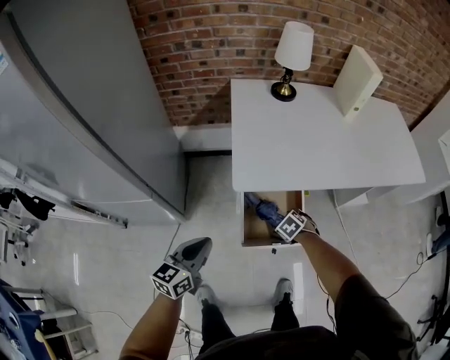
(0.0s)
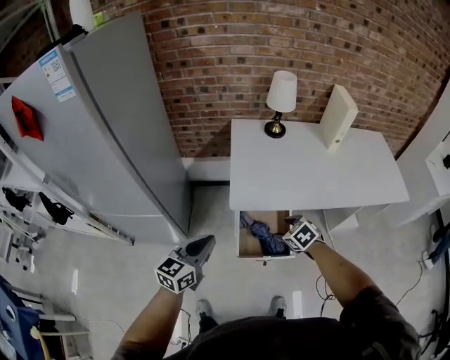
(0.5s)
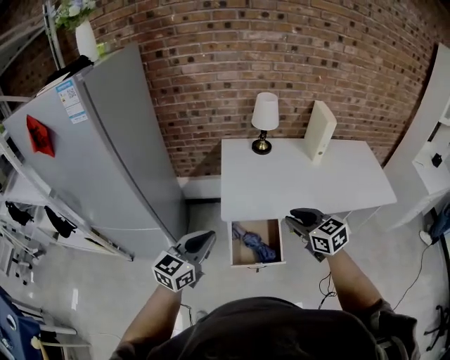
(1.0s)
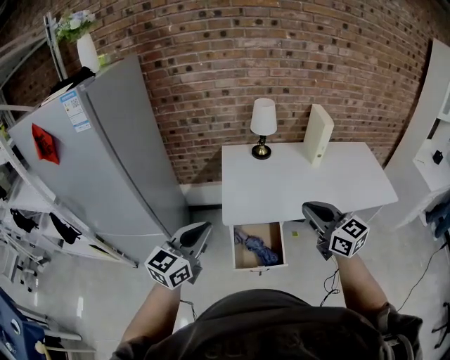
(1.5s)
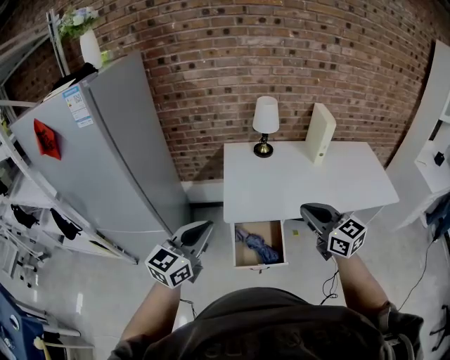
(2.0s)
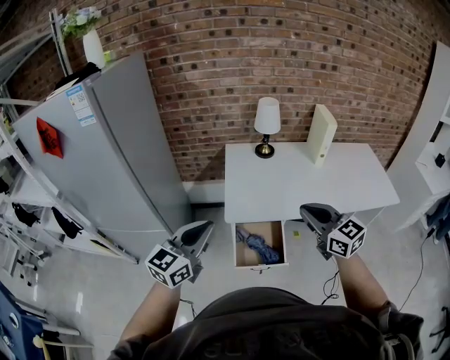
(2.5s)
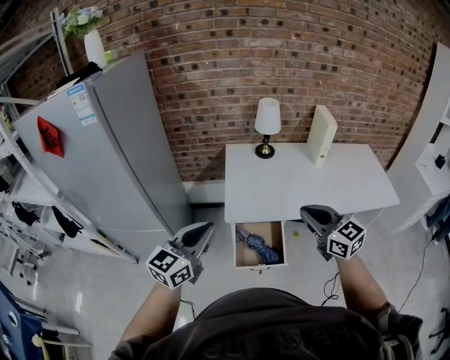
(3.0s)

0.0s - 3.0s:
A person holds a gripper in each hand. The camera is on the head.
0.0s - 1.5s: The left gripper is displaced upward by some 30 cm, and changes its angle by some 20 degrees, while the right gripper heads upward, covering approximately 50 cm, tips its fingers upward by approximately 70 degrees, and closes up.
1.5s - 3.0s: The grippers make only small movements.

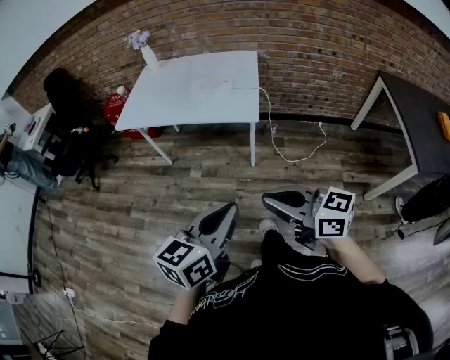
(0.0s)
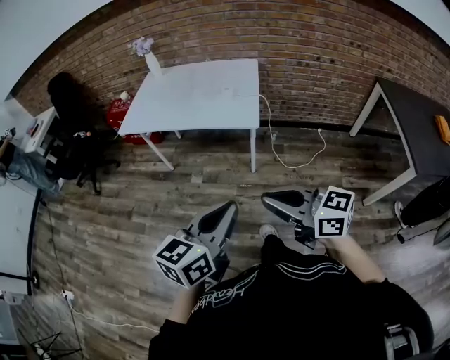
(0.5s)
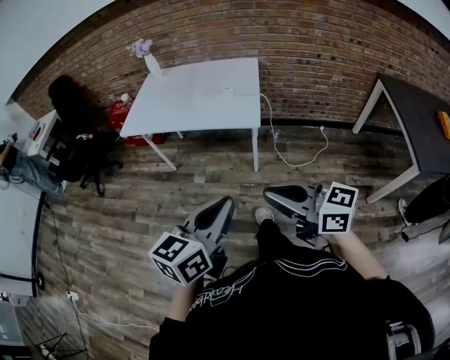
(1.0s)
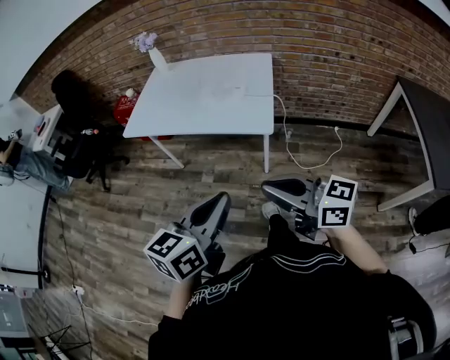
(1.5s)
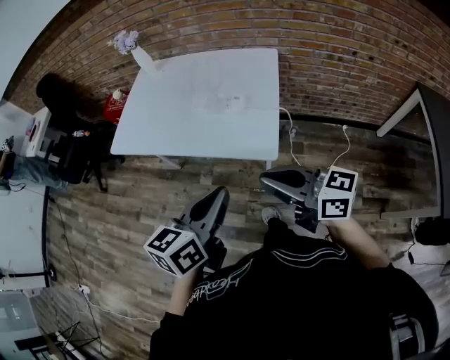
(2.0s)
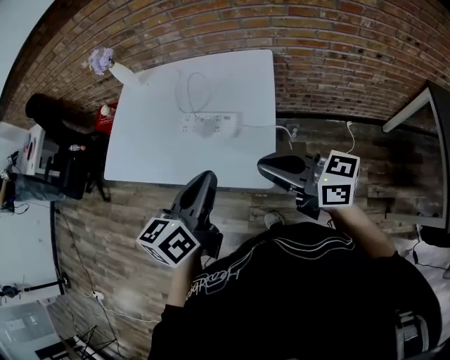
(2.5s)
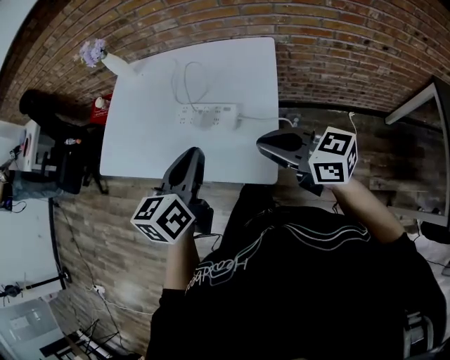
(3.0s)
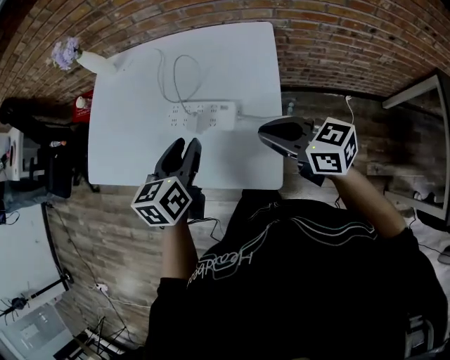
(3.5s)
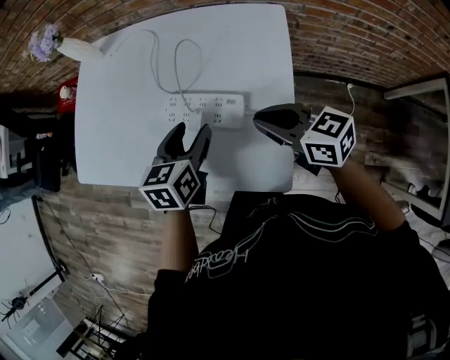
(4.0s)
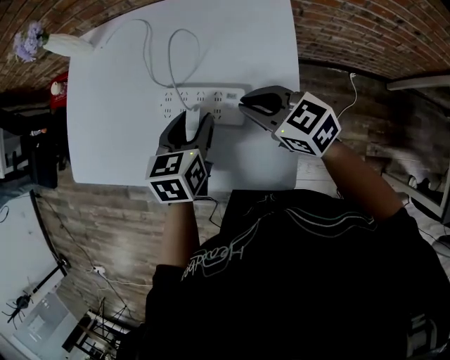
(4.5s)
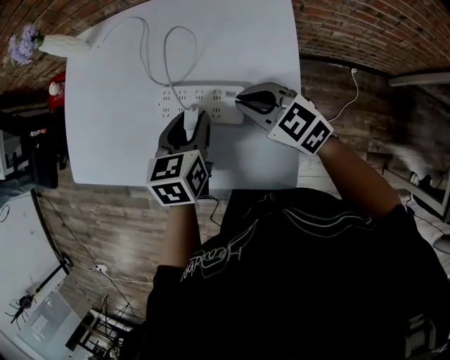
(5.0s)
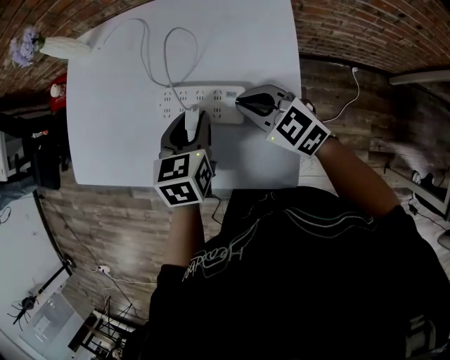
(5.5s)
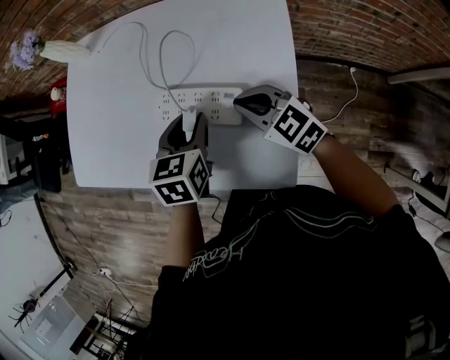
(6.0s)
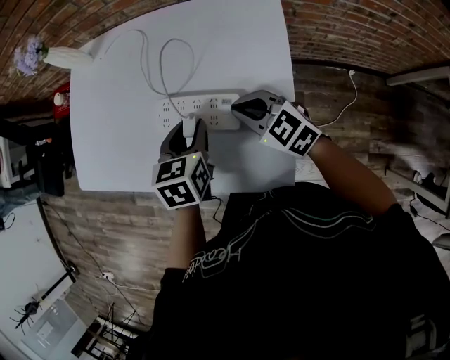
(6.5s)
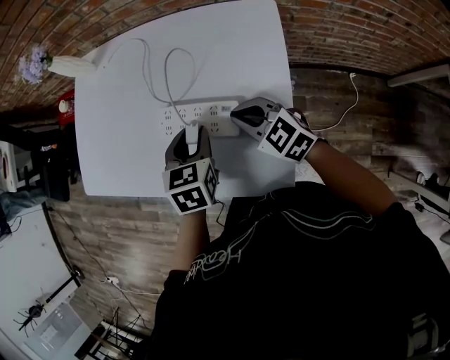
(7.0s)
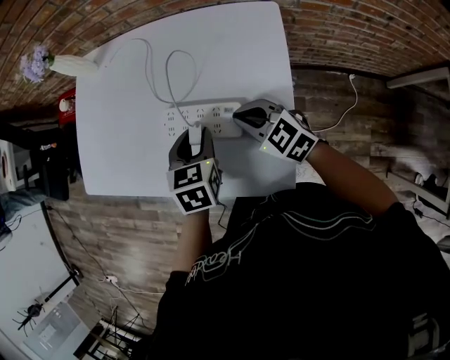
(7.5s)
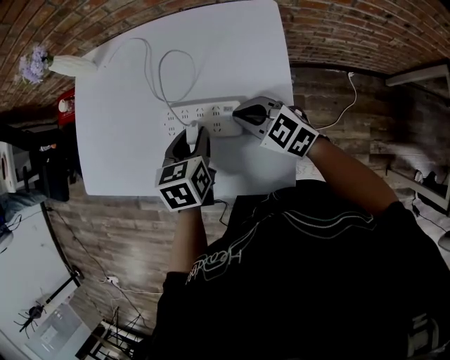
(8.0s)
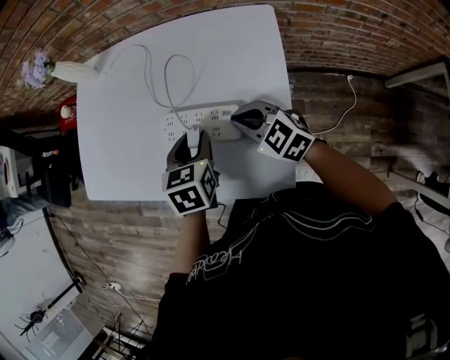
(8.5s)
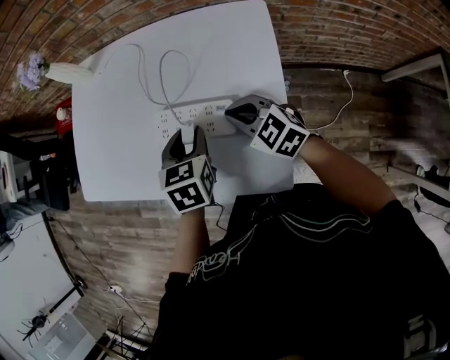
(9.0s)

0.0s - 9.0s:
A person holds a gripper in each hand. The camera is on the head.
0.0s - 2.0s: The grippers both shift forward by some 30 cm.
2.0s - 4.5s: The grippers both shift forward and downward by approximately 40 cm. The left gripper rotates roughly 30 degrees, and opens up. The right gripper turns by roughly 30 degrees.
4.5s - 9.0s: There are only small adjustments of the grippers.

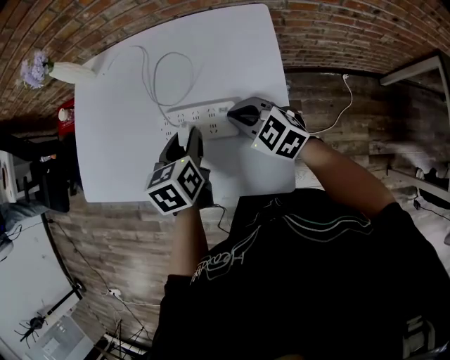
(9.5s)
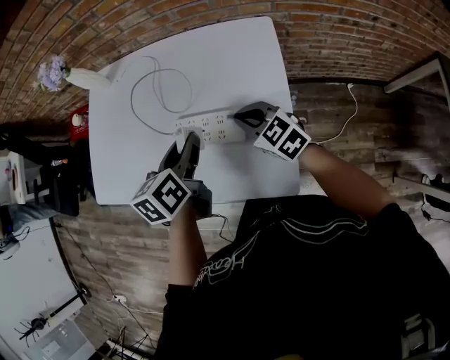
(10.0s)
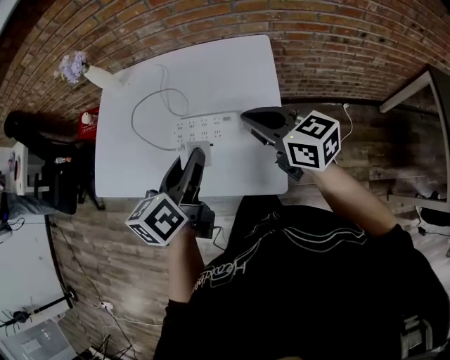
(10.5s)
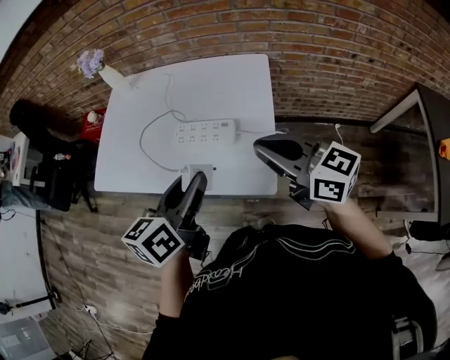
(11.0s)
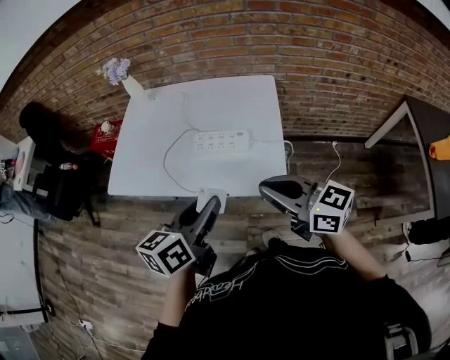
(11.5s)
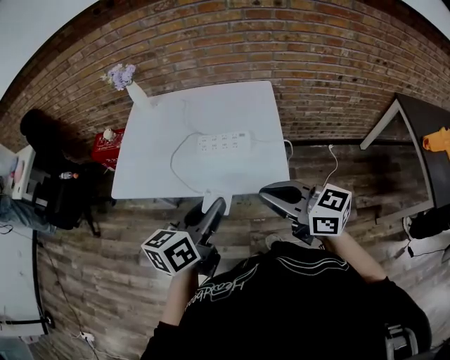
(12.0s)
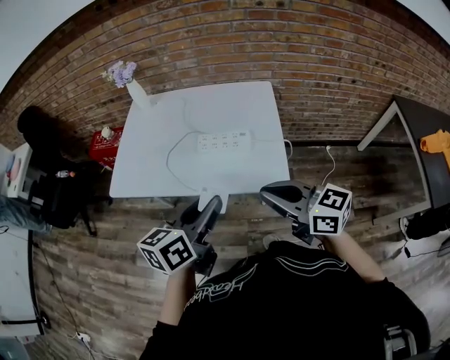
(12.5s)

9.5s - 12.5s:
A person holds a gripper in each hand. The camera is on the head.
9.5s - 11.0s: Both grippers move upward and backward, some 25 cm. The left gripper changes its angle by roughly 30 degrees. The right gripper swivels roughly 40 degrees.
11.0s - 12.5s: Both grippers move backward and to the left, approximately 15 cm.

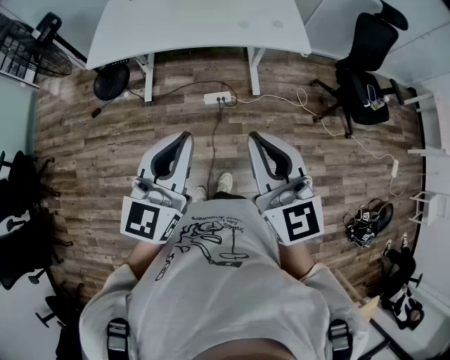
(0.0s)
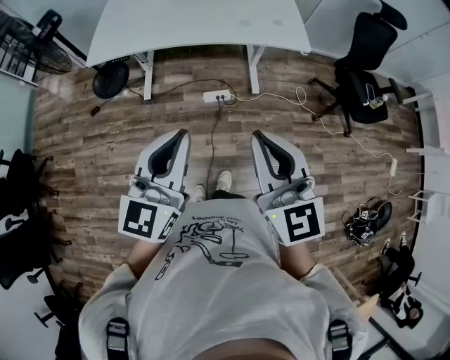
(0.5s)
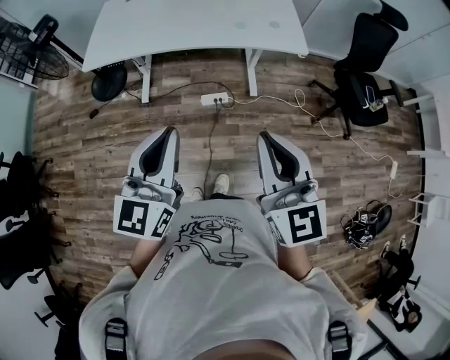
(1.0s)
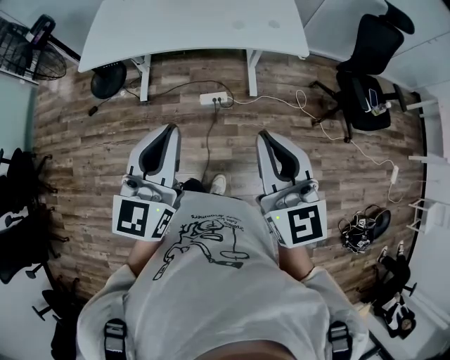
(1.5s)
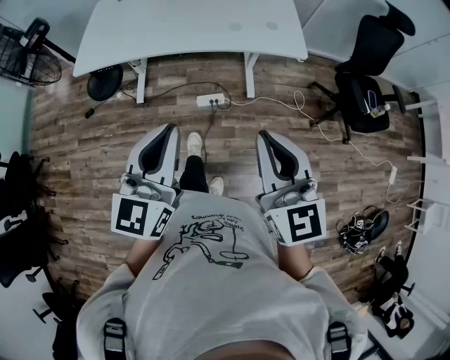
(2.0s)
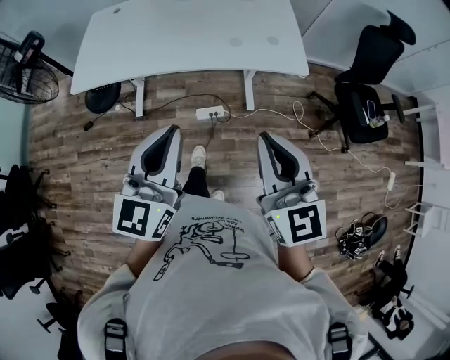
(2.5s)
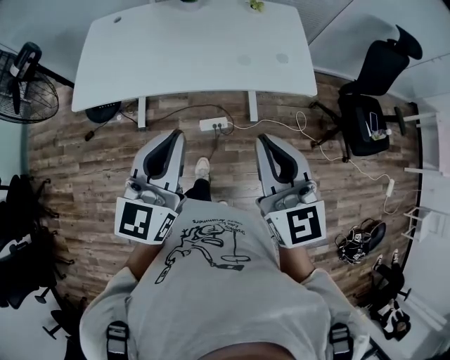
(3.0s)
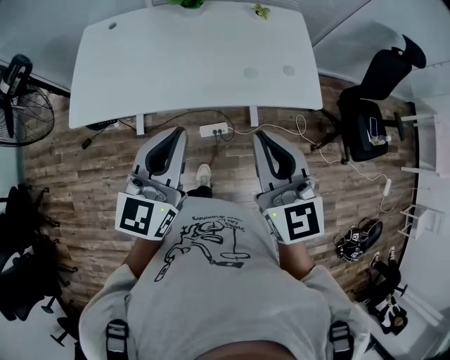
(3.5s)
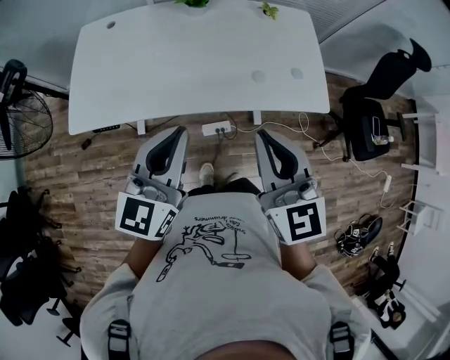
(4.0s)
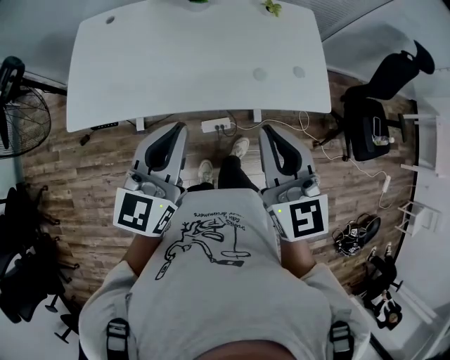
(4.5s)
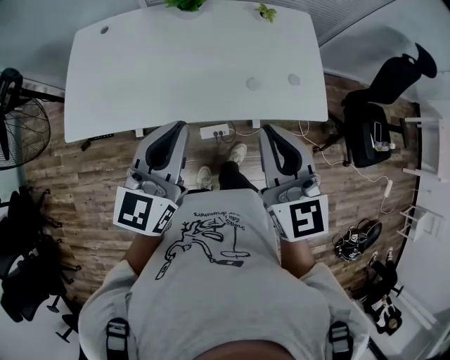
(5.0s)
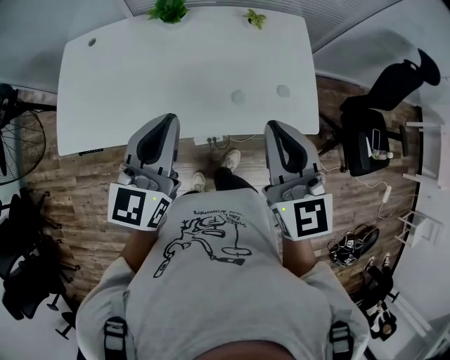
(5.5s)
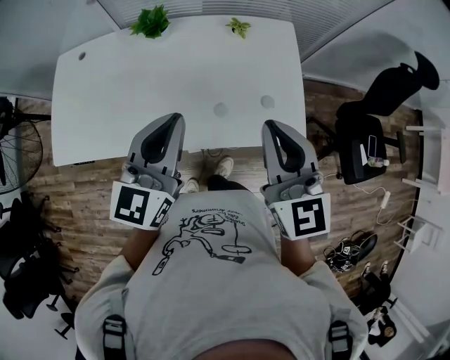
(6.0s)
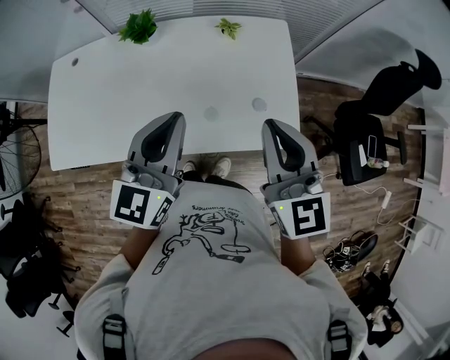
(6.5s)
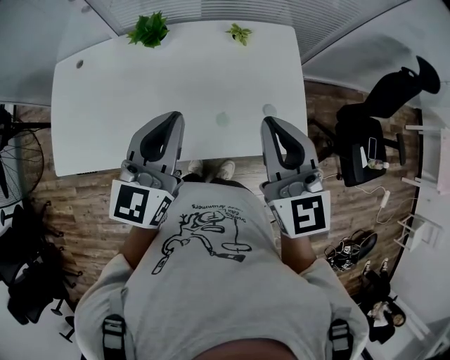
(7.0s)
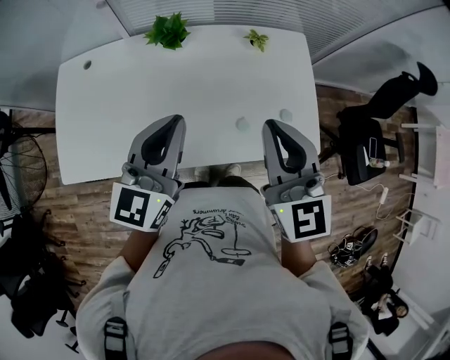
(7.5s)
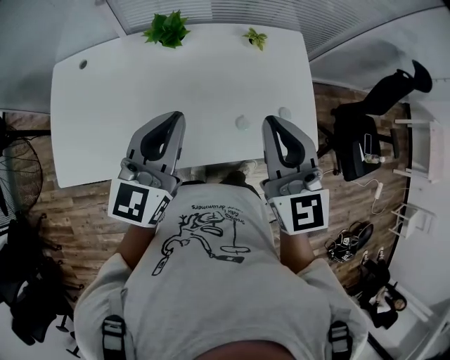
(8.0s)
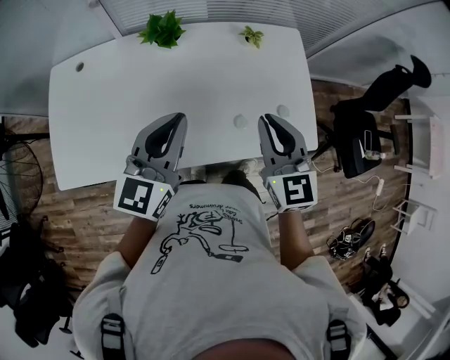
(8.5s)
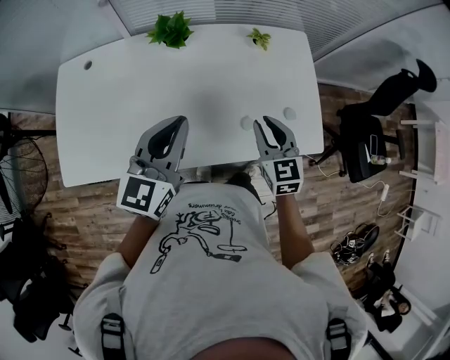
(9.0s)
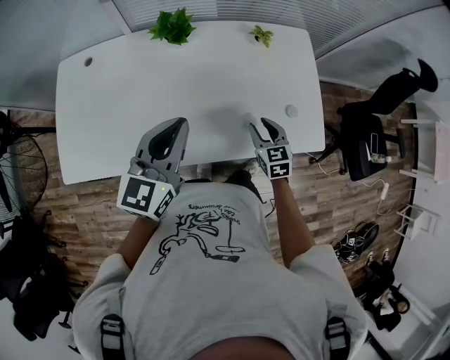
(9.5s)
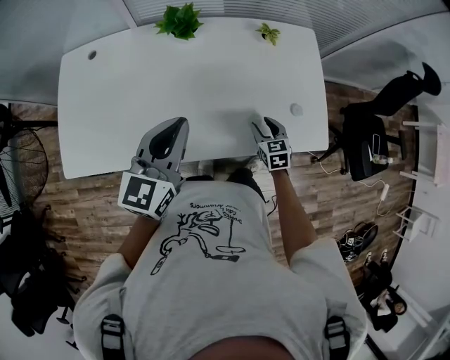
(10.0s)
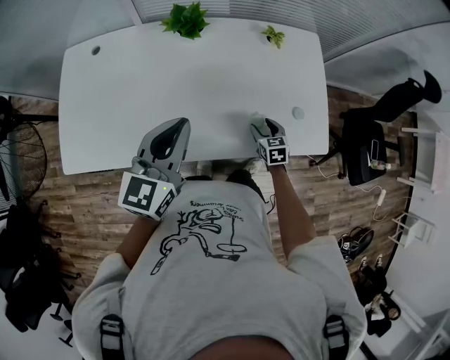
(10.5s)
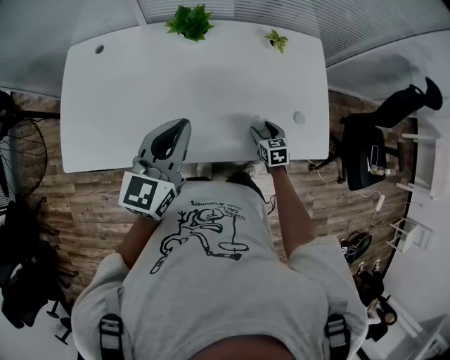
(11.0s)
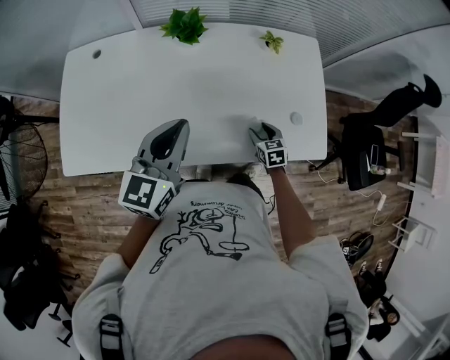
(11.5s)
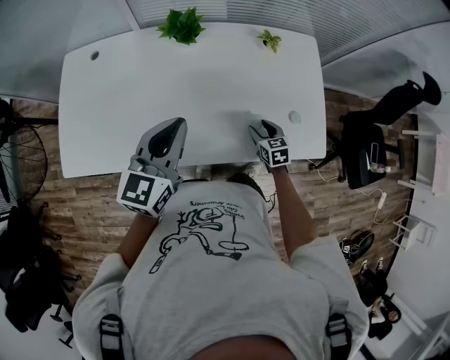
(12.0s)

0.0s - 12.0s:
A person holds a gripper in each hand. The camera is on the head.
0.0s - 2.0s: The left gripper heads forward, covering about 10 cm. Meanwhile the right gripper is displaced to the right and forward by about 10 cm.
2.0s - 4.0s: The left gripper goes roughly 35 cm forward, while the right gripper shifts about 35 cm forward and to the left.
4.0s - 6.0s: The right gripper goes about 25 cm to the right and forward. Meanwhile the left gripper goes approximately 25 cm forward and to the right.
6.0s - 8.0s: The two grippers go about 15 cm to the left and forward.
8.0s - 10.0s: The left gripper moves downward, roughly 5 cm; the right gripper shifts about 35 cm downward, tips its fingers downward by approximately 30 degrees, and opens its fingers.
10.0s - 12.0s: The grippers make only small movements.
